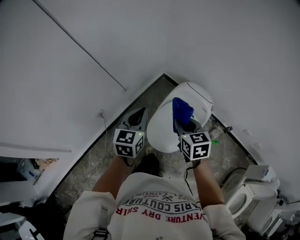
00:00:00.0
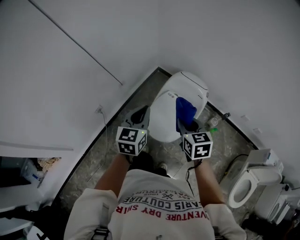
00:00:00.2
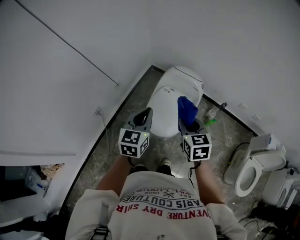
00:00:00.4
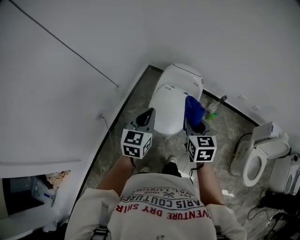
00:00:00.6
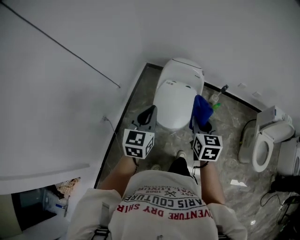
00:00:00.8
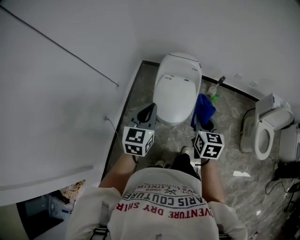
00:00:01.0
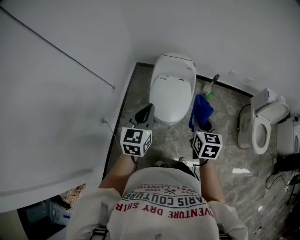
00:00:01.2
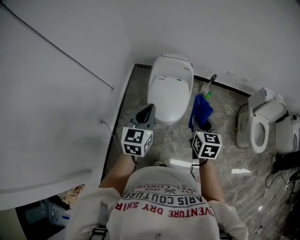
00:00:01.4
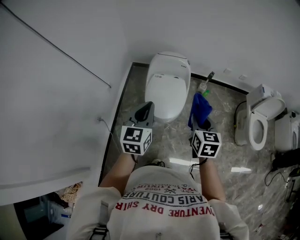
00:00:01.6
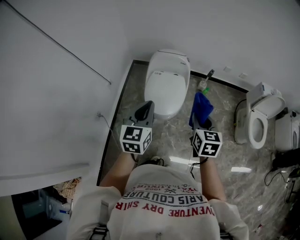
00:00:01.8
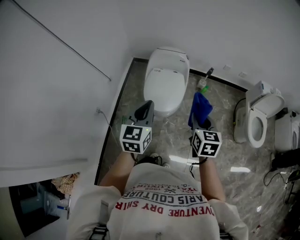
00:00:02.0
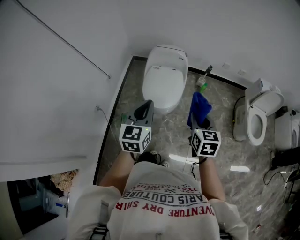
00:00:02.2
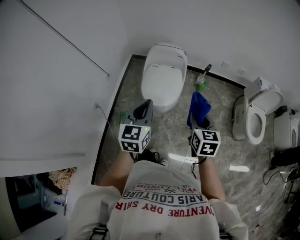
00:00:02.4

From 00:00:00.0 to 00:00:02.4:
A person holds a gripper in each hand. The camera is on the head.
From 00:00:00.0 to 00:00:01.2: The left gripper changes place by about 15 cm, and changes its angle by about 30 degrees; the right gripper moves approximately 25 cm, and swivels approximately 40 degrees.
From 00:00:01.2 to 00:00:02.4: The grippers both shift backward and to the right by roughly 15 cm.

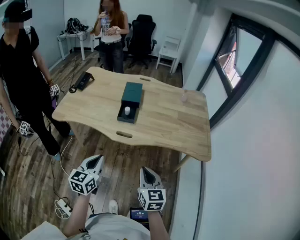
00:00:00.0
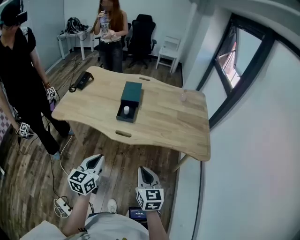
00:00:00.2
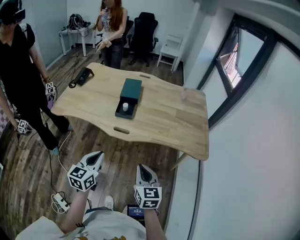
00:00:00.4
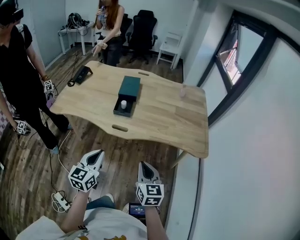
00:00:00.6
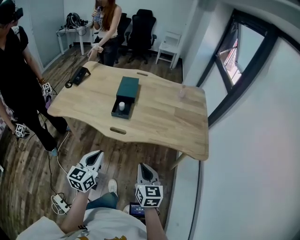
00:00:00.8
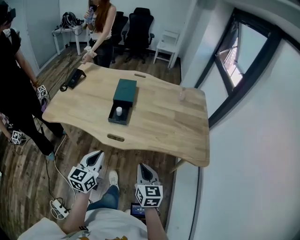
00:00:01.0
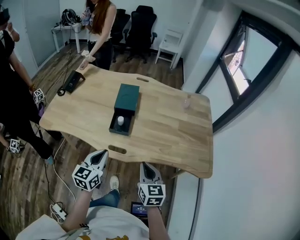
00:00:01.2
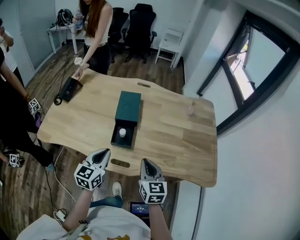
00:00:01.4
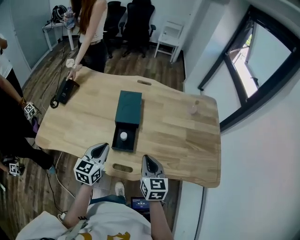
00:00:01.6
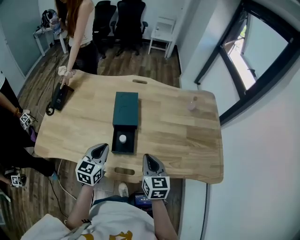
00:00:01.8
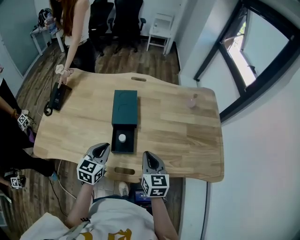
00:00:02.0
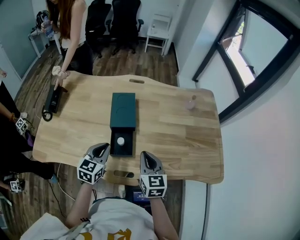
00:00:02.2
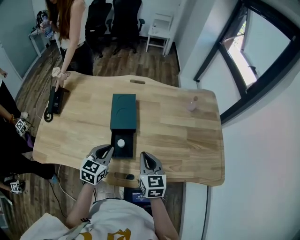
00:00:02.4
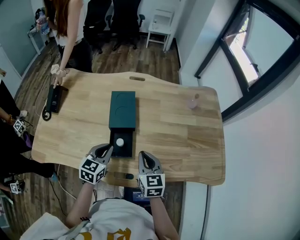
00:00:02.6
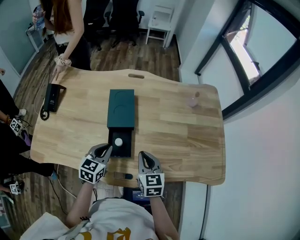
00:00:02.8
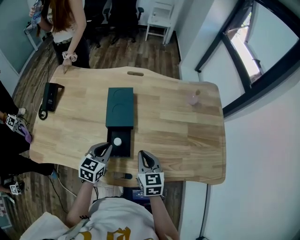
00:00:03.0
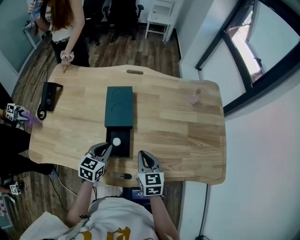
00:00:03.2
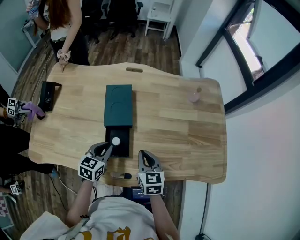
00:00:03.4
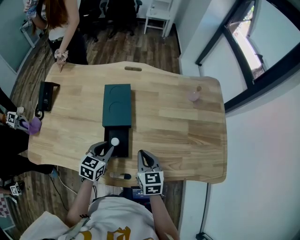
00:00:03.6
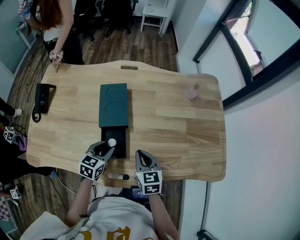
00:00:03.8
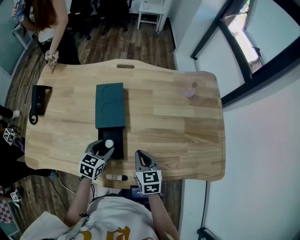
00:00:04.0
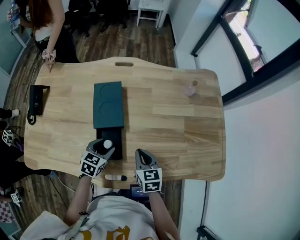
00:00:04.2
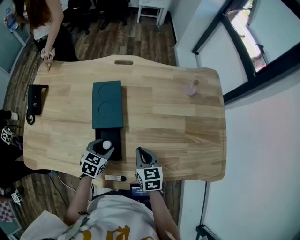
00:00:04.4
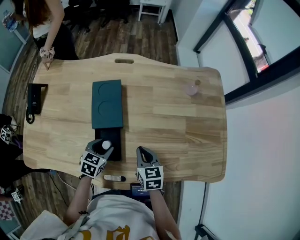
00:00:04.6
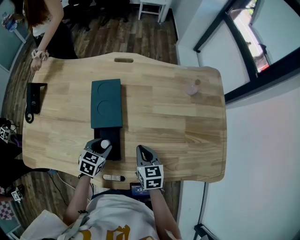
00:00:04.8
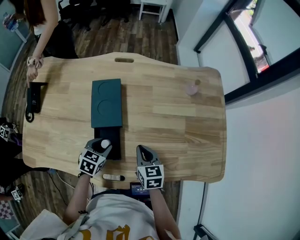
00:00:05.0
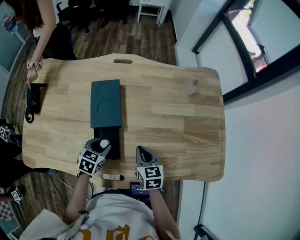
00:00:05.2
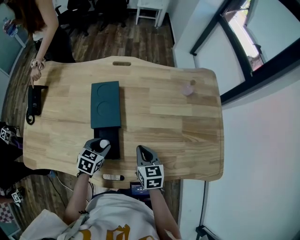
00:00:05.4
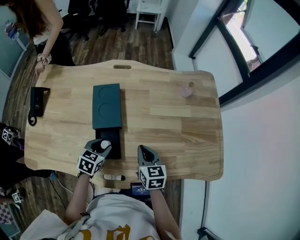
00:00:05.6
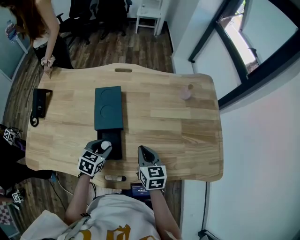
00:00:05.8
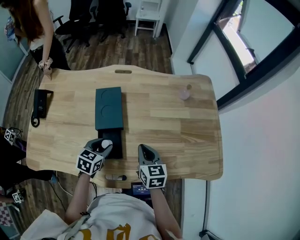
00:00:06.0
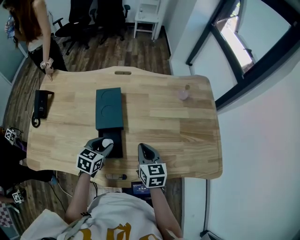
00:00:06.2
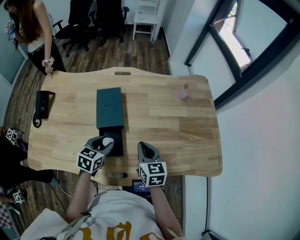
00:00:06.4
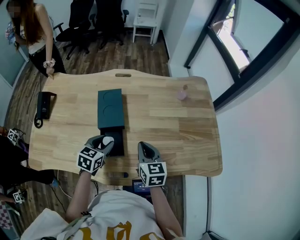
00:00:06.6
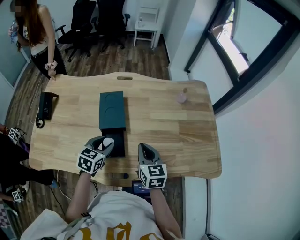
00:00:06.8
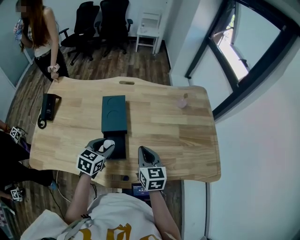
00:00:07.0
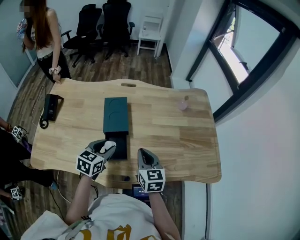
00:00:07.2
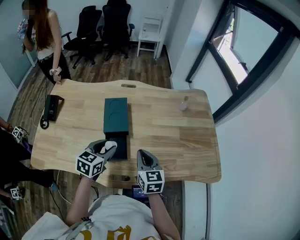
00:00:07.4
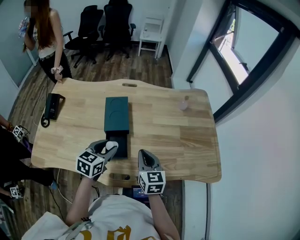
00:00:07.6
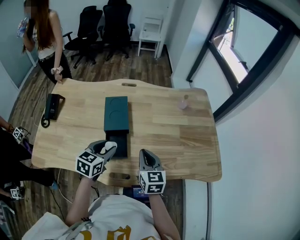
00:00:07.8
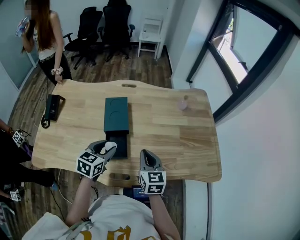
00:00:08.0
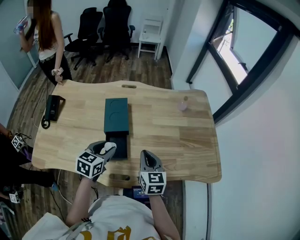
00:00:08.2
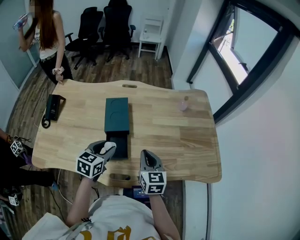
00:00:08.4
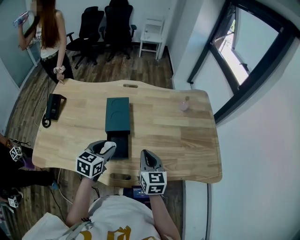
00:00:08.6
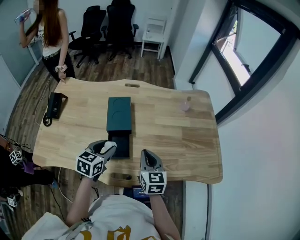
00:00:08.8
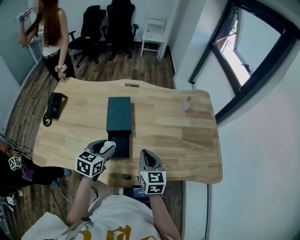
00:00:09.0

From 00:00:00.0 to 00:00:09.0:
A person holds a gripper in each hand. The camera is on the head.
From 00:00:00.0 to 00:00:01.6: The grippers both shift forward by some 35 cm.
From 00:00:01.6 to 00:00:03.0: The right gripper shifts roughly 10 cm forward and downward. Meanwhile the left gripper travels downward and forward by roughly 10 cm.
From 00:00:03.0 to 00:00:04.4: The grippers both shift downward by some 10 cm. The left gripper opens.
From 00:00:04.4 to 00:00:06.0: Both grippers move upward, approximately 5 cm.
From 00:00:06.0 to 00:00:07.6: The right gripper shifts roughly 10 cm upward and backward. The left gripper moves upward, roughly 10 cm.
From 00:00:07.6 to 00:00:09.0: The grippers stay close to where they were, moving slightly.

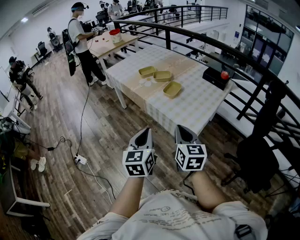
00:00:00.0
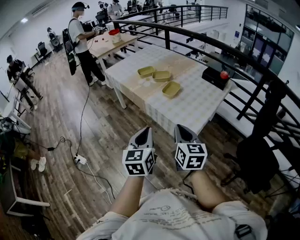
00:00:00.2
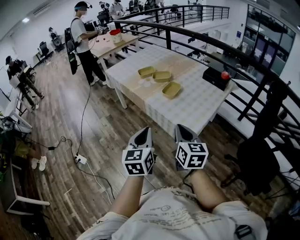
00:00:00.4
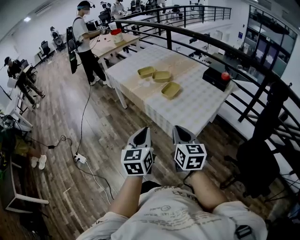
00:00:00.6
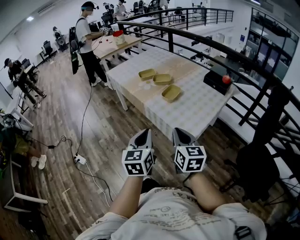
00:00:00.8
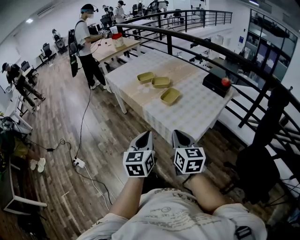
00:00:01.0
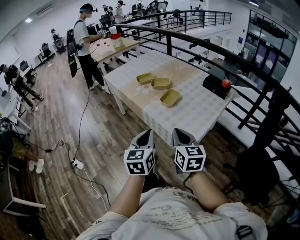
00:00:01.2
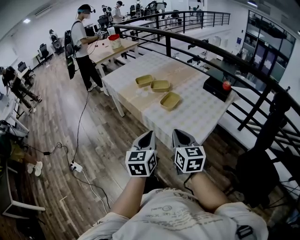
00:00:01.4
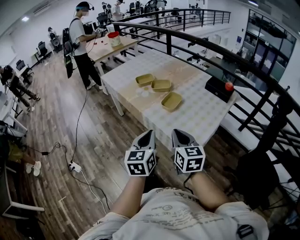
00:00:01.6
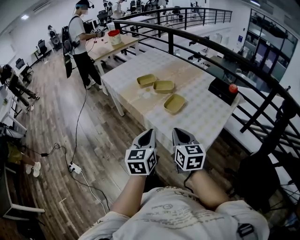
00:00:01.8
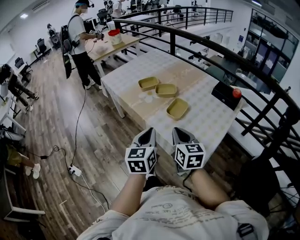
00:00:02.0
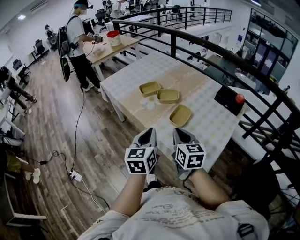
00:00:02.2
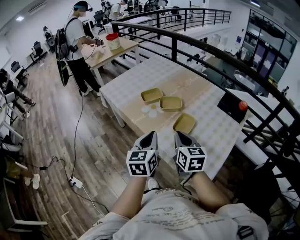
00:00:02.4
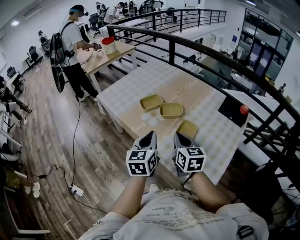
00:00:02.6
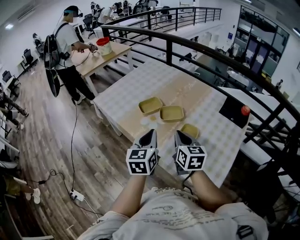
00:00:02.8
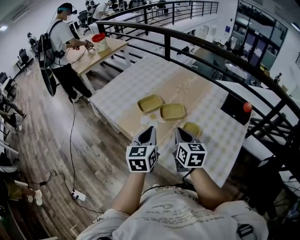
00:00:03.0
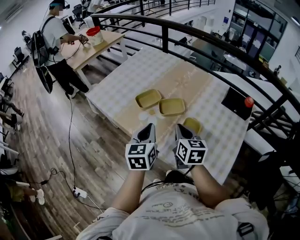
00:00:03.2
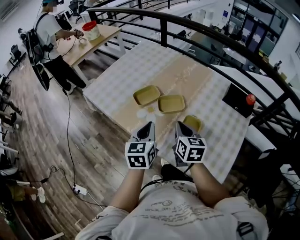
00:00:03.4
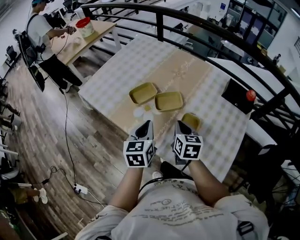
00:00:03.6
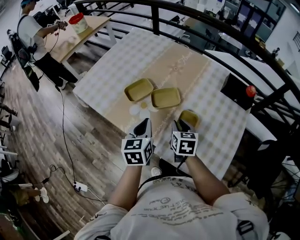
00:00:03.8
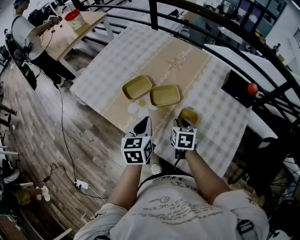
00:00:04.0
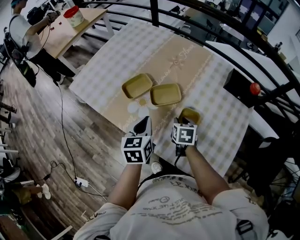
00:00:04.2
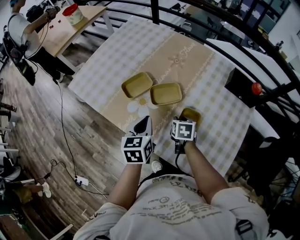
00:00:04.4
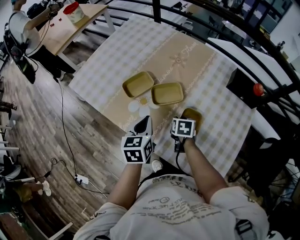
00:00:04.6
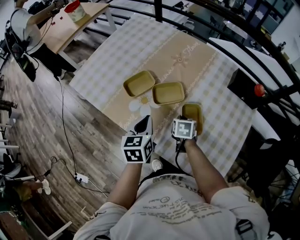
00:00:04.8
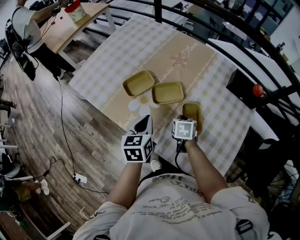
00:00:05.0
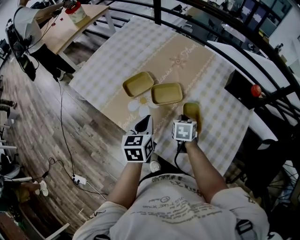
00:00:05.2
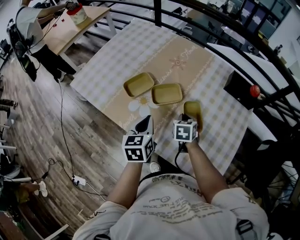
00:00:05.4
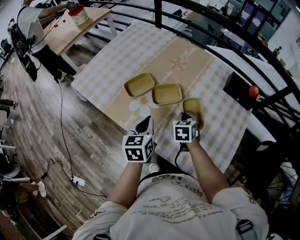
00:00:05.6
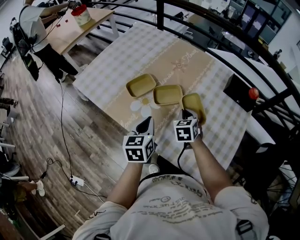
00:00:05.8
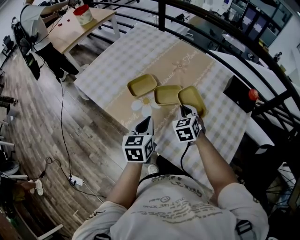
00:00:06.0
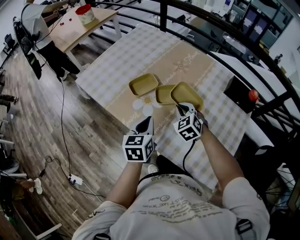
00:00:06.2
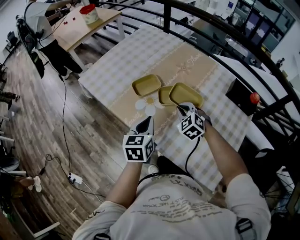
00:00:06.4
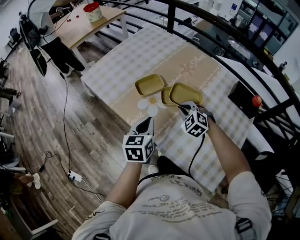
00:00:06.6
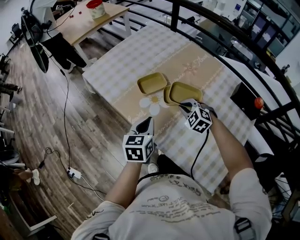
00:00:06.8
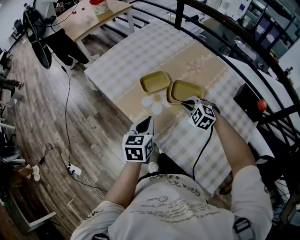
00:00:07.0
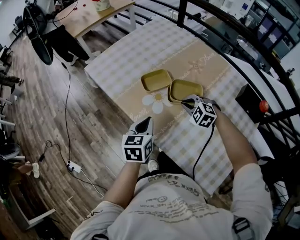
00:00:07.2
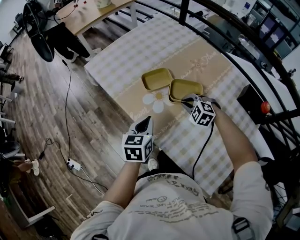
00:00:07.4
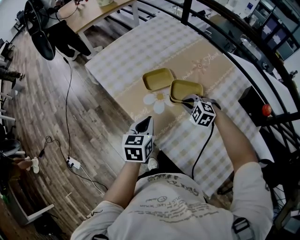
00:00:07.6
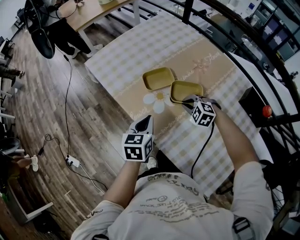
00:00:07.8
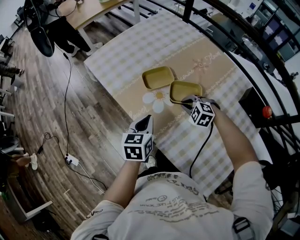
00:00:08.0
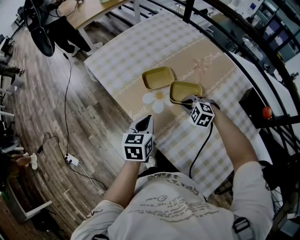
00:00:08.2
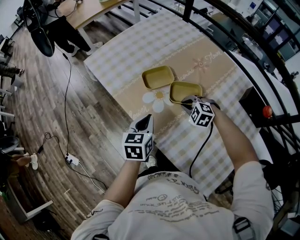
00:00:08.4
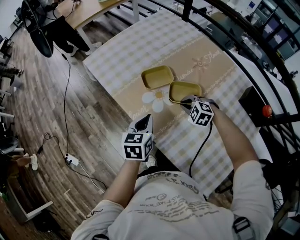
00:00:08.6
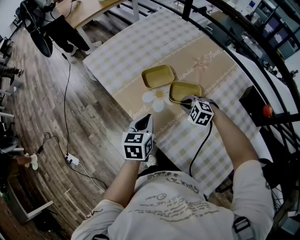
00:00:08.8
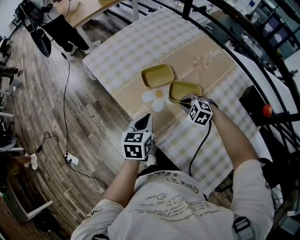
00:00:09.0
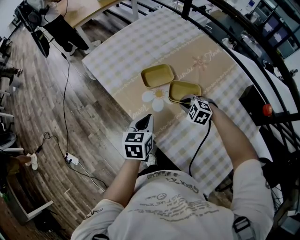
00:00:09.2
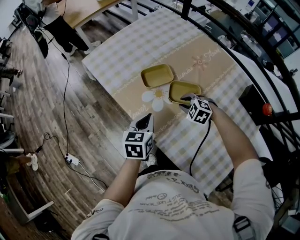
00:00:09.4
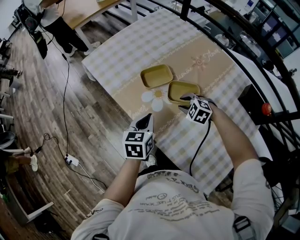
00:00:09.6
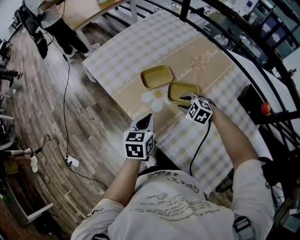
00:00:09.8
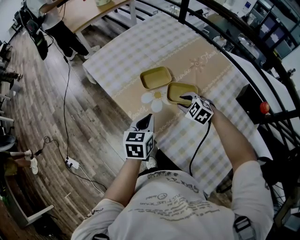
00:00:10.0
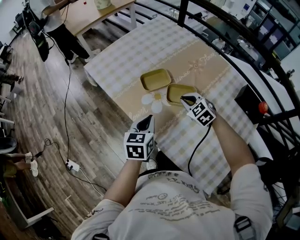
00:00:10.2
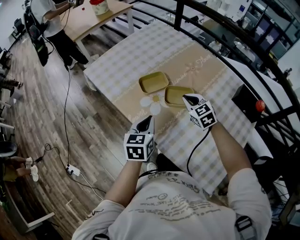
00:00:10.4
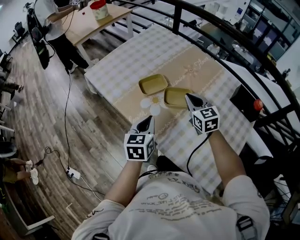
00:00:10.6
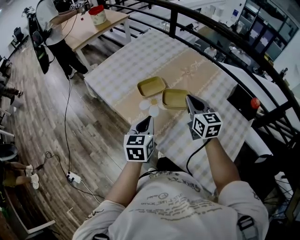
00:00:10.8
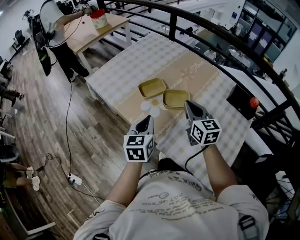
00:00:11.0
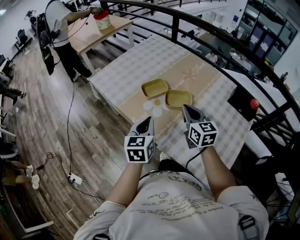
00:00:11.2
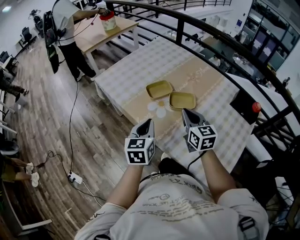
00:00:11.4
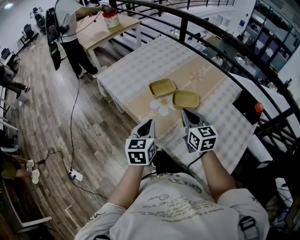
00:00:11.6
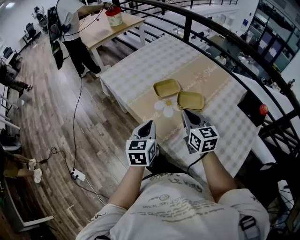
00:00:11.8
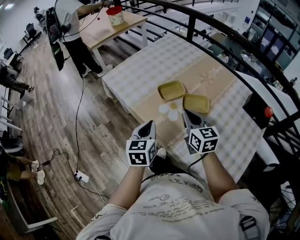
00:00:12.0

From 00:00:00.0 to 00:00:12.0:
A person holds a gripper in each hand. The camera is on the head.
From 00:00:00.0 to 00:00:01.6: The two grippers go some 15 cm forward.
From 00:00:01.6 to 00:00:03.0: Both grippers travel together forward, some 35 cm.
From 00:00:03.0 to 00:00:04.4: The right gripper travels downward and forward by about 25 cm, tilts its fingers some 30 degrees downward, and opens its fingers. Meanwhile the left gripper goes about 15 cm downward and forward.
From 00:00:04.4 to 00:00:06.0: The right gripper is displaced upward by some 10 cm, swivels about 40 degrees, and closes its fingers.
From 00:00:06.0 to 00:00:07.6: The right gripper shifts by roughly 10 cm, and turns by approximately 60 degrees; the left gripper moves some 5 cm.
From 00:00:07.6 to 00:00:09.0: The grippers stay close to where they were, moving slightly.
From 00:00:09.0 to 00:00:10.4: The right gripper goes some 10 cm upward, changes its angle by approximately 40 degrees, and opens and closes again.
From 00:00:10.4 to 00:00:12.0: The right gripper shifts approximately 15 cm to the left, upward and backward, and turns by some 30 degrees, while the left gripper is displaced to the left by some 10 cm.
